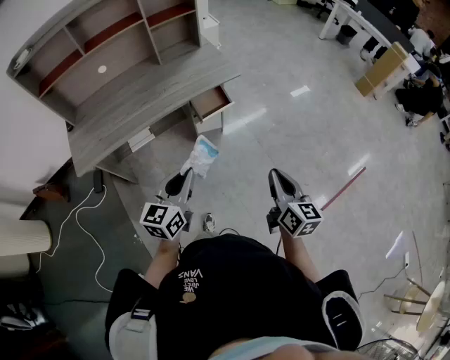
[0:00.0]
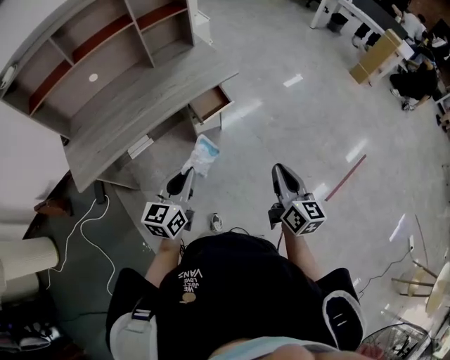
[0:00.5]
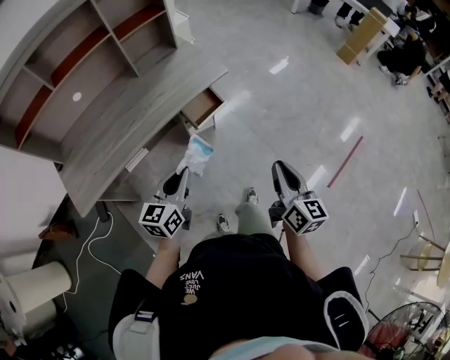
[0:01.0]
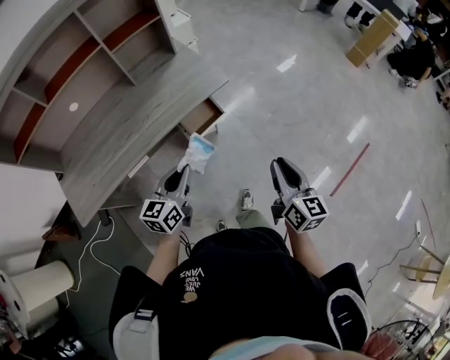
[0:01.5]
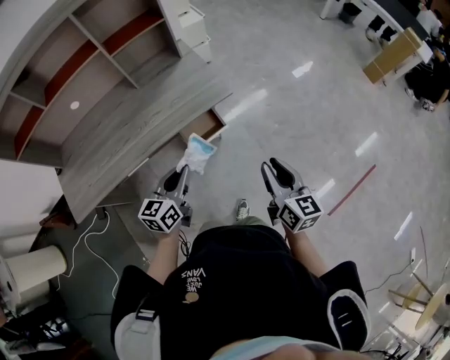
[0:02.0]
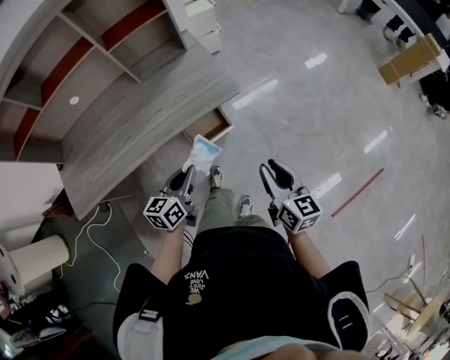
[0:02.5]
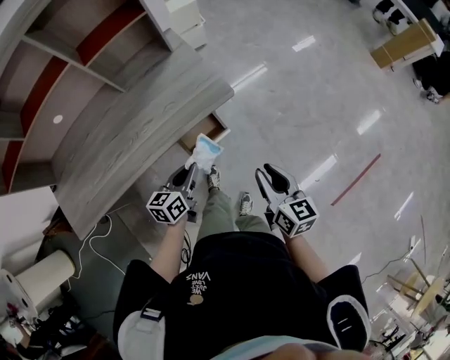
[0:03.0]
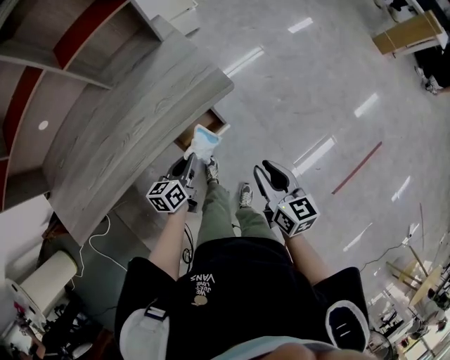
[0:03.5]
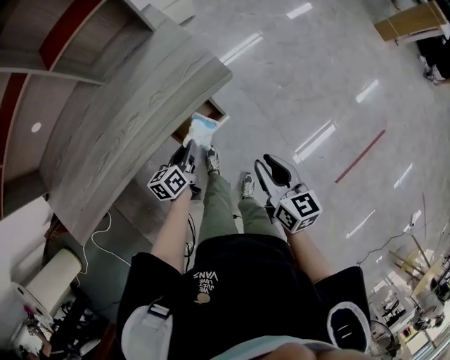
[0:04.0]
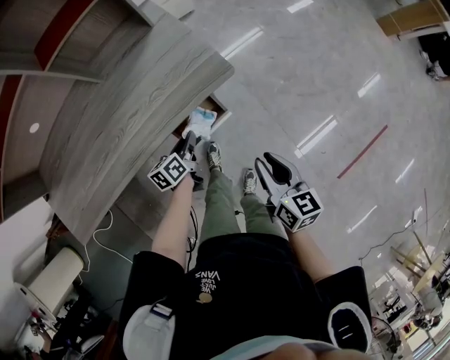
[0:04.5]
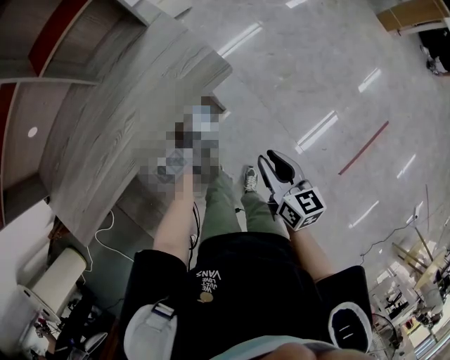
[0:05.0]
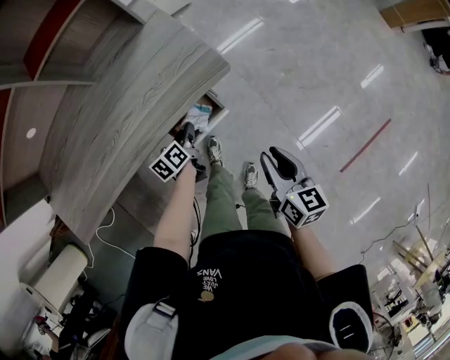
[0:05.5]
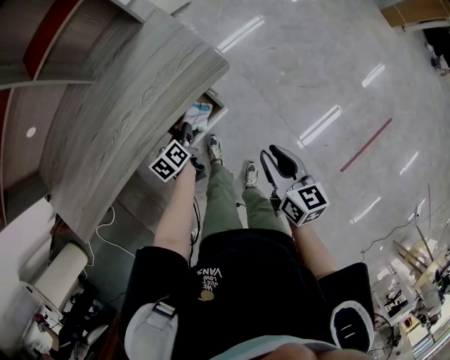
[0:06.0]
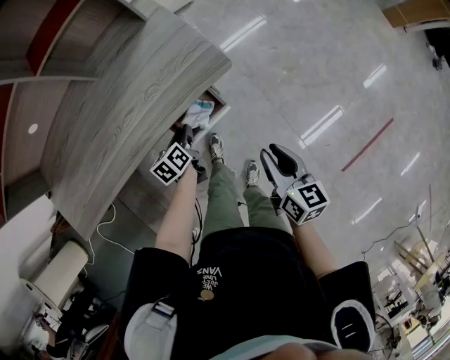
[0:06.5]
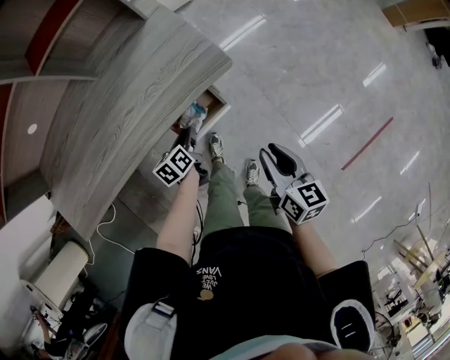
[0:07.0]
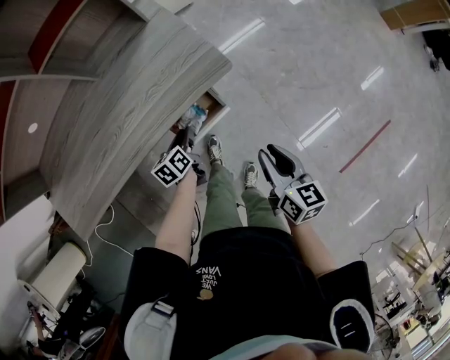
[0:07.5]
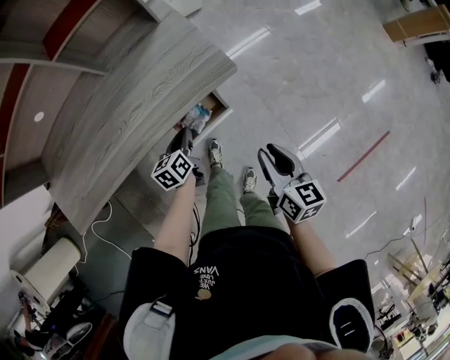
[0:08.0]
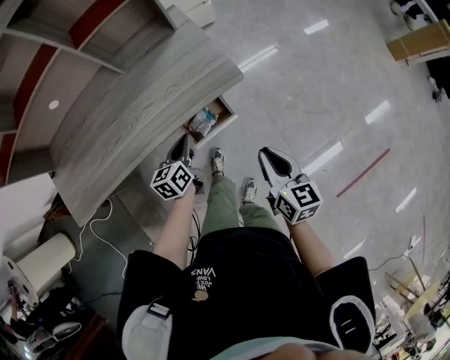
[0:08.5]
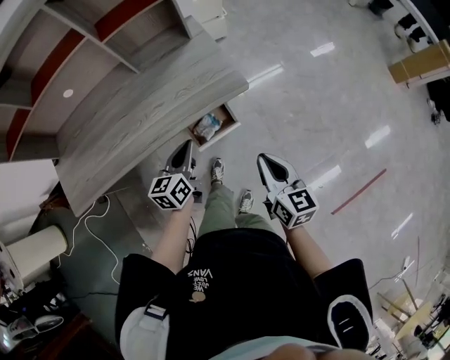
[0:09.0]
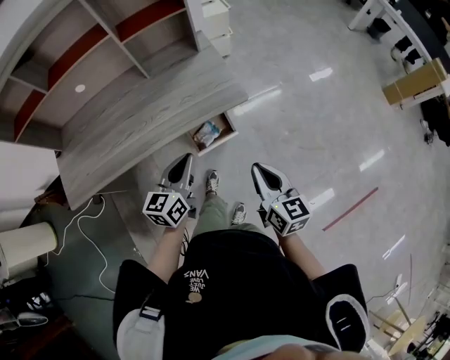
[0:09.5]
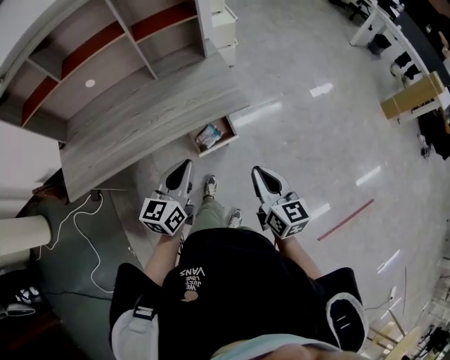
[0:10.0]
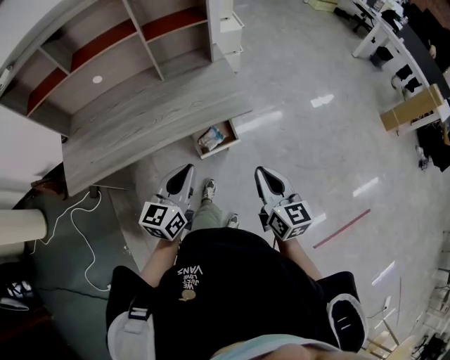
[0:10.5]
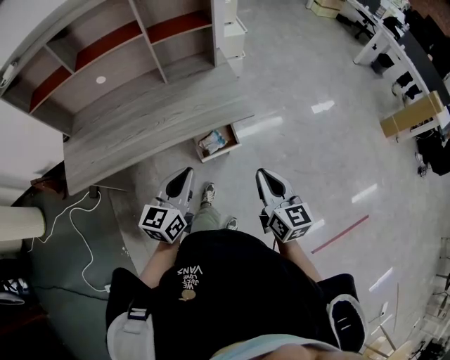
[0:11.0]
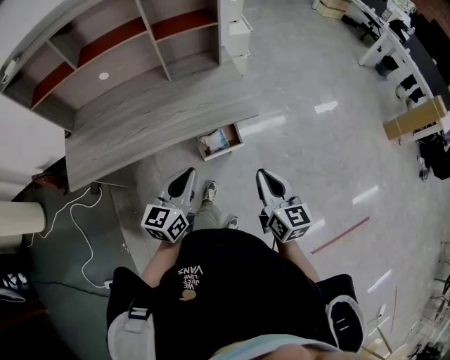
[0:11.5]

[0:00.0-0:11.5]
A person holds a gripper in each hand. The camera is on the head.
0:00.0 to 0:02.0: The two grippers go some 25 cm forward.
0:02.0 to 0:04.0: The right gripper goes roughly 15 cm downward and forward. The left gripper shifts some 25 cm downward and forward, and changes its angle by roughly 30 degrees.
0:04.0 to 0:06.0: The left gripper is displaced downward by some 5 cm.
0:06.0 to 0:07.5: There are only small adjustments of the grippers.
0:07.5 to 0:09.5: The left gripper moves upward, approximately 25 cm, and tilts its fingers some 30 degrees upward, while the right gripper travels upward by about 10 cm, and turns by some 20 degrees.
0:09.5 to 0:11.5: The right gripper moves roughly 5 cm; the left gripper is displaced backward and upward by roughly 10 cm.

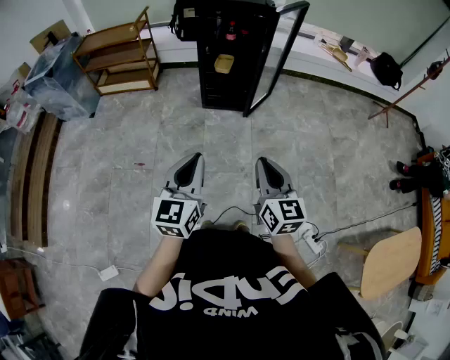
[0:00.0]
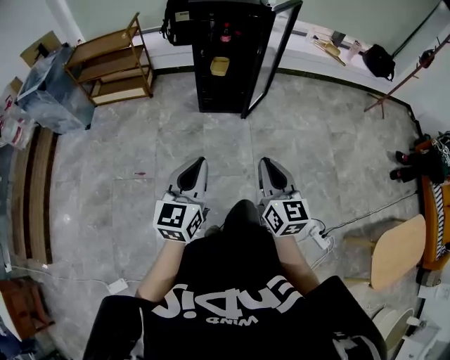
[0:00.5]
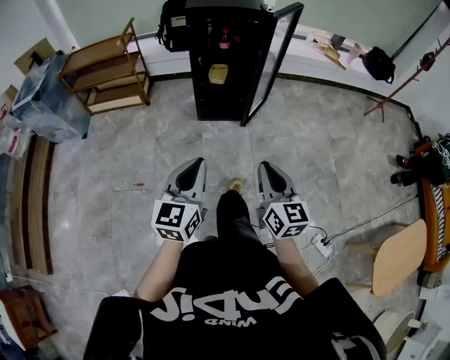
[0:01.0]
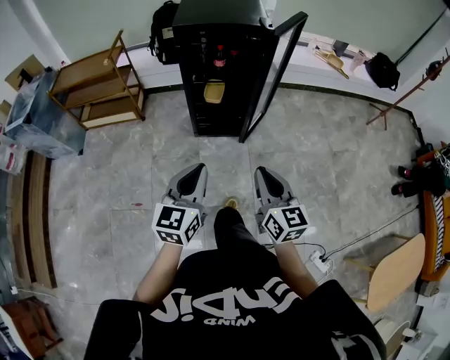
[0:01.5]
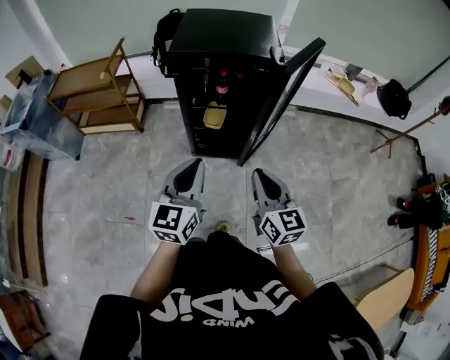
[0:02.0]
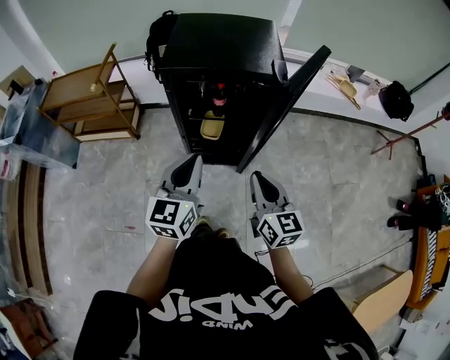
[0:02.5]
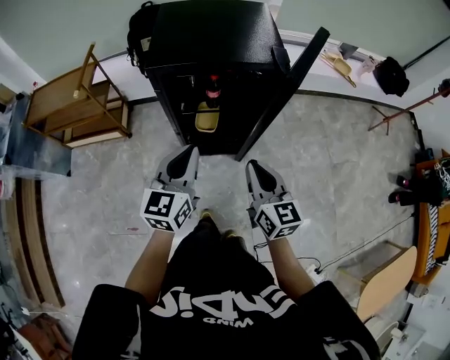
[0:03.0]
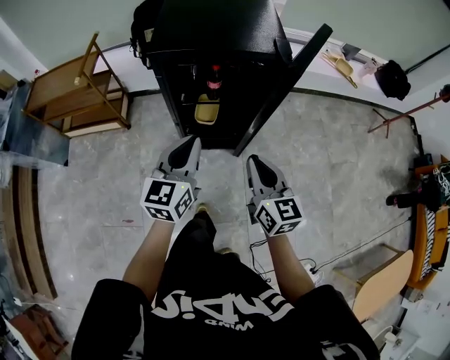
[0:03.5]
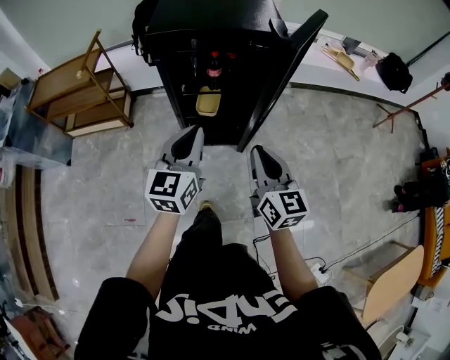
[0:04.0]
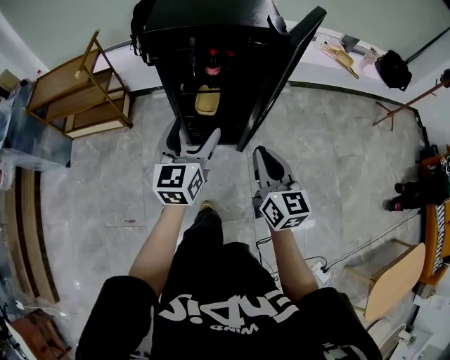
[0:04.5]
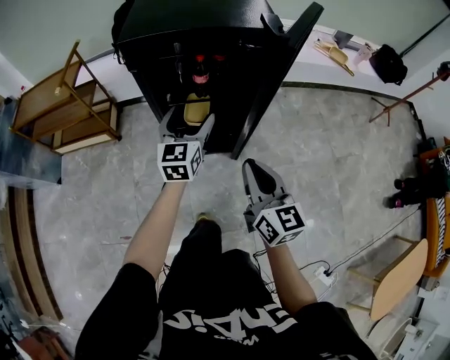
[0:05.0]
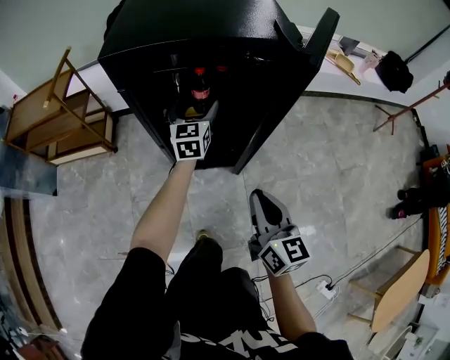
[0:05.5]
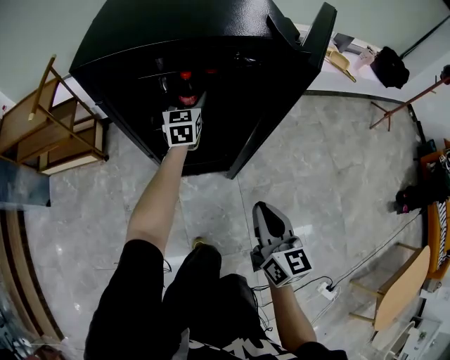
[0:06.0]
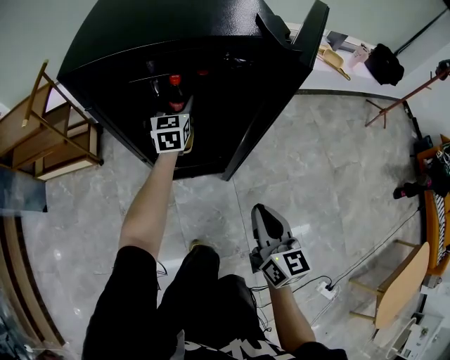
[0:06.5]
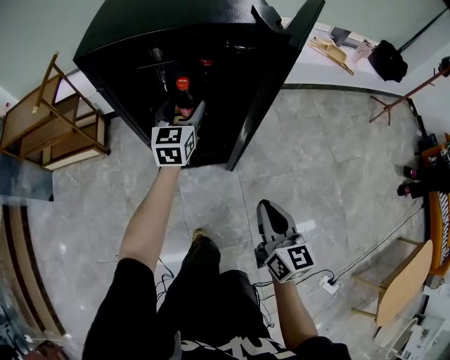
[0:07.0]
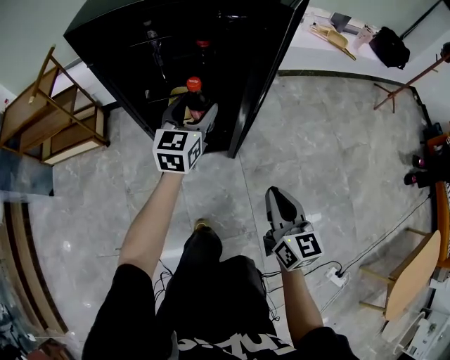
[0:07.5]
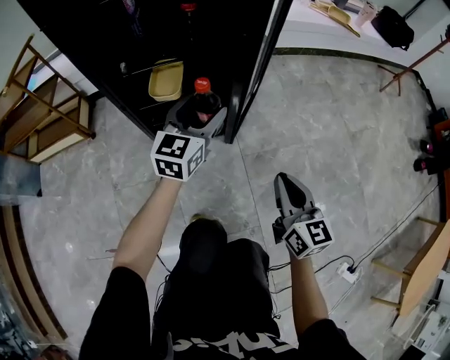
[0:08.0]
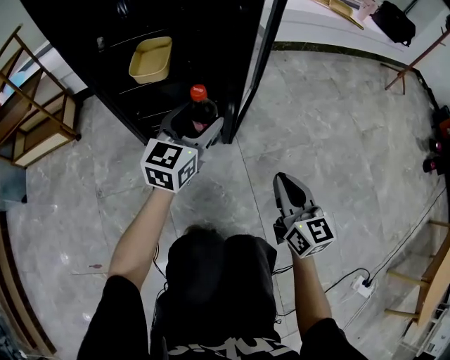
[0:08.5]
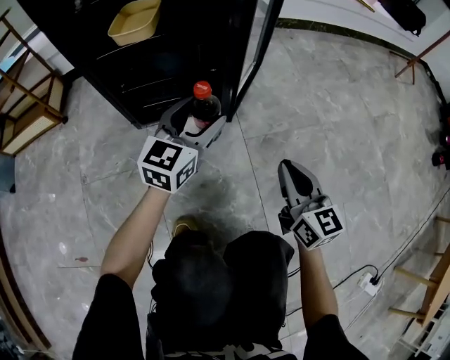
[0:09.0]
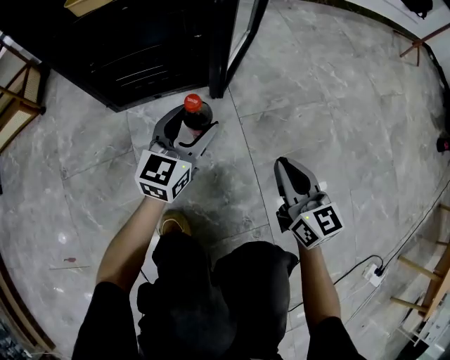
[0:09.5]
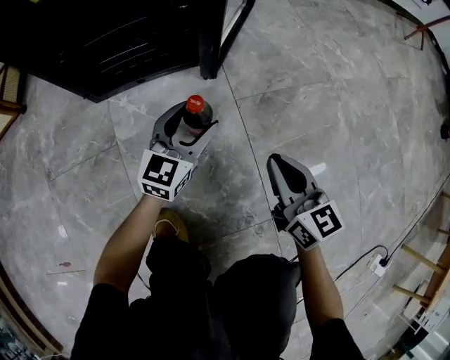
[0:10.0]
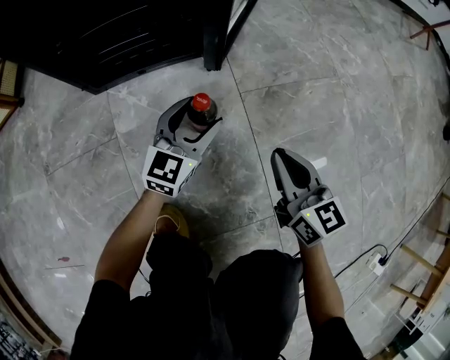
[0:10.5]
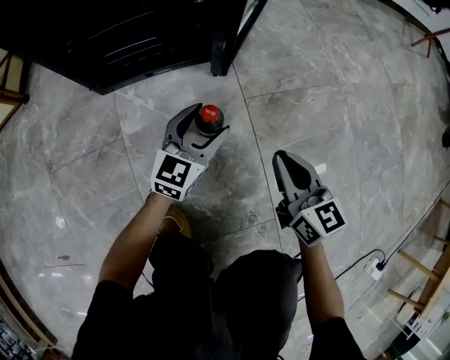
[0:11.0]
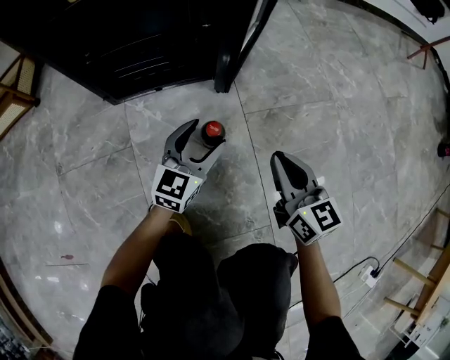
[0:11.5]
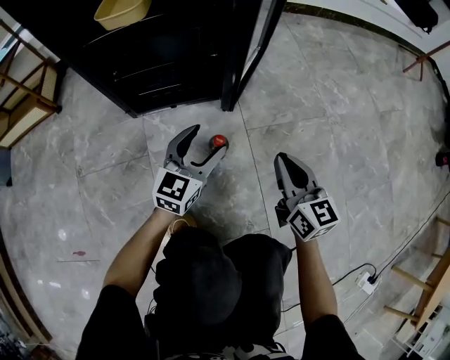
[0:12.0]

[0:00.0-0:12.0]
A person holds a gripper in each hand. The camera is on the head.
0:00.0 to 0:02.0: The grippers both shift forward by roughly 40 cm.
0:02.0 to 0:04.0: The right gripper goes approximately 5 cm forward. The left gripper is displaced forward and downward by approximately 10 cm.
0:04.0 to 0:06.0: The left gripper moves forward and downward, approximately 40 cm, and opens. The right gripper is displaced downward and forward by approximately 15 cm.
0:06.0 to 0:08.0: The right gripper travels downward and to the right by about 20 cm, while the left gripper heads backward, to the right and downward, covering about 25 cm, and turns by some 20 degrees.
0:08.0 to 0:10.0: Both grippers travel together downward, roughly 40 cm.
0:10.0 to 0:12.0: The two grippers go roughly 10 cm upward.

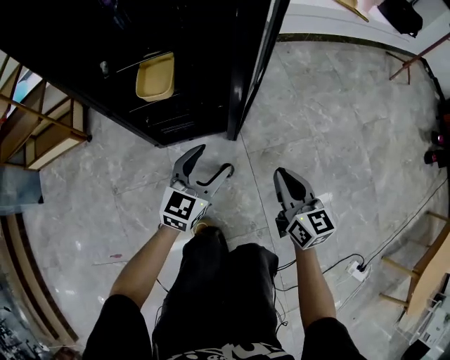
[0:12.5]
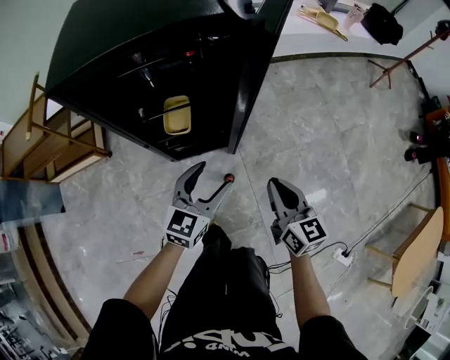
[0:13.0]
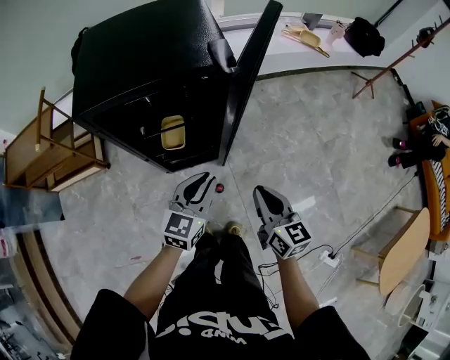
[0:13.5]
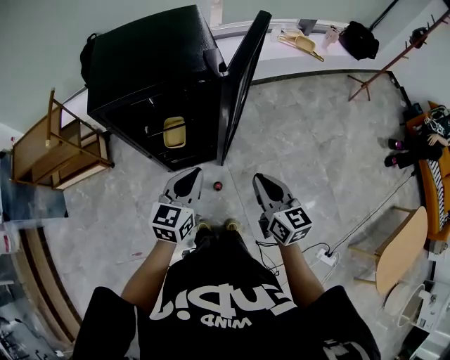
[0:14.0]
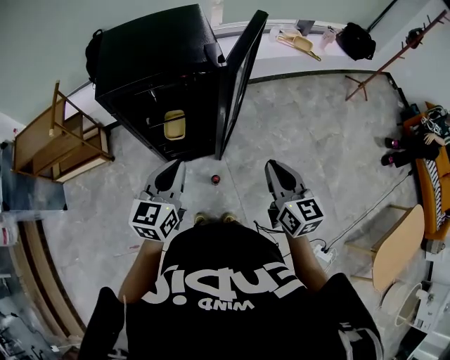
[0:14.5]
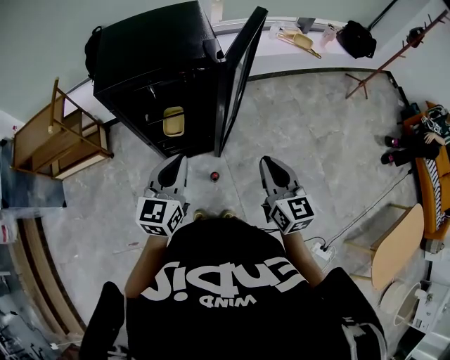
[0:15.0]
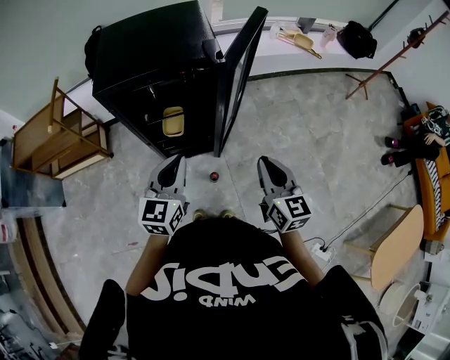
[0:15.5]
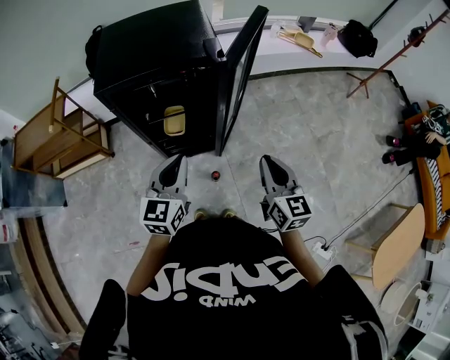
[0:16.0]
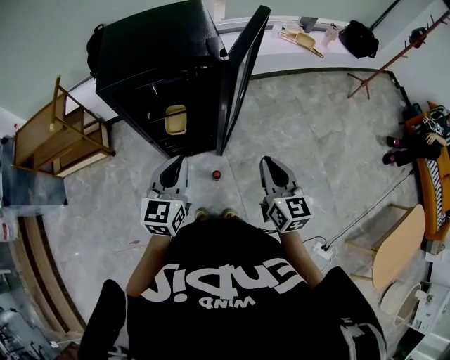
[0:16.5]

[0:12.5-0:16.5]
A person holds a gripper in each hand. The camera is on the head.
0:12.5 to 0:14.5: Both grippers travel together upward, approximately 50 cm. The left gripper closes.
0:14.5 to 0:16.5: There are only small adjustments of the grippers.
